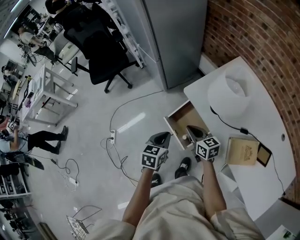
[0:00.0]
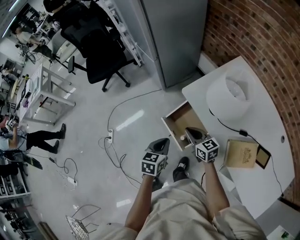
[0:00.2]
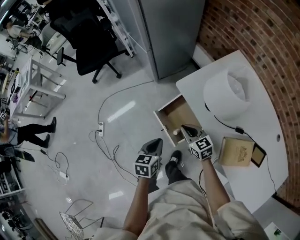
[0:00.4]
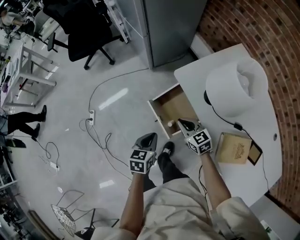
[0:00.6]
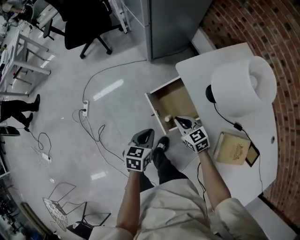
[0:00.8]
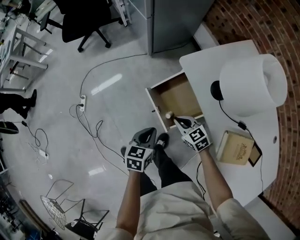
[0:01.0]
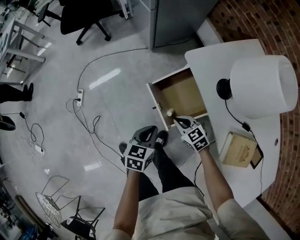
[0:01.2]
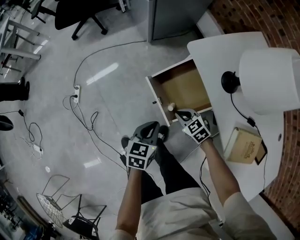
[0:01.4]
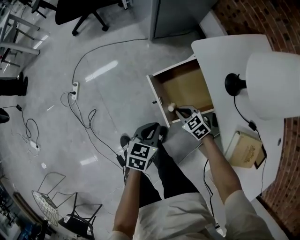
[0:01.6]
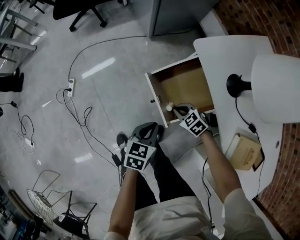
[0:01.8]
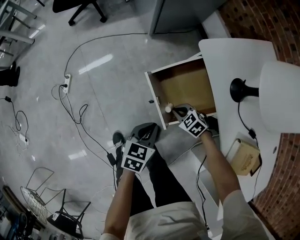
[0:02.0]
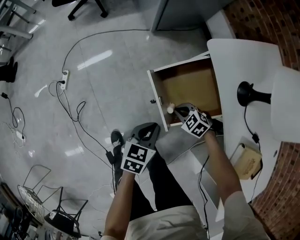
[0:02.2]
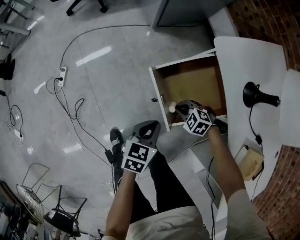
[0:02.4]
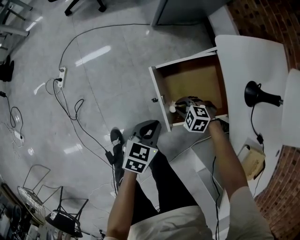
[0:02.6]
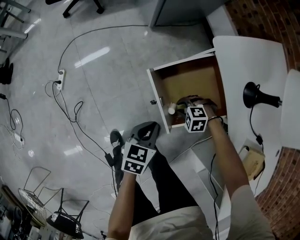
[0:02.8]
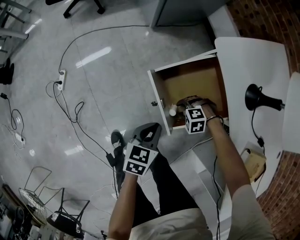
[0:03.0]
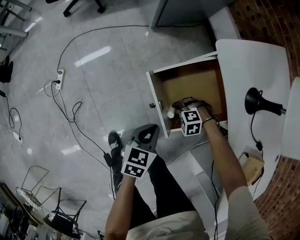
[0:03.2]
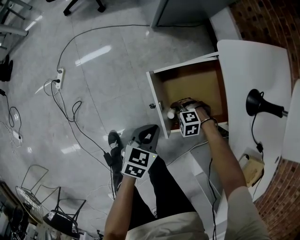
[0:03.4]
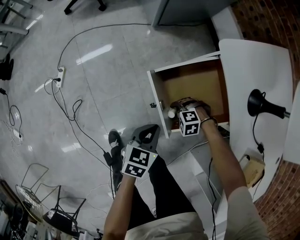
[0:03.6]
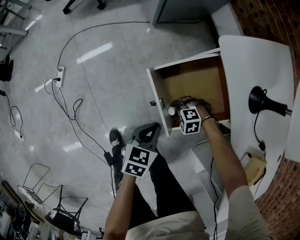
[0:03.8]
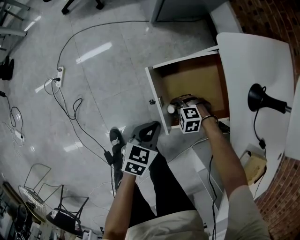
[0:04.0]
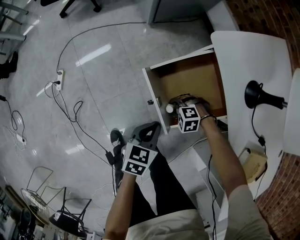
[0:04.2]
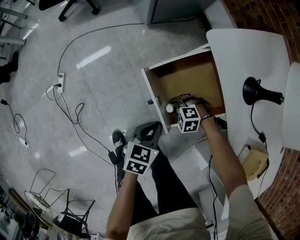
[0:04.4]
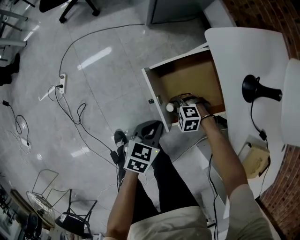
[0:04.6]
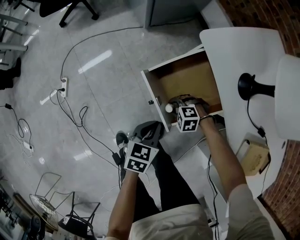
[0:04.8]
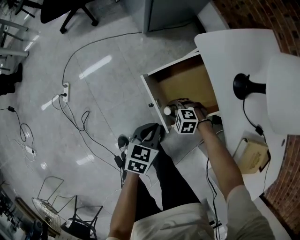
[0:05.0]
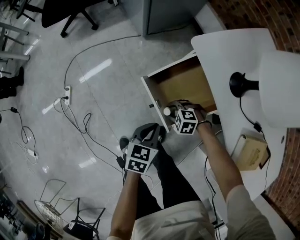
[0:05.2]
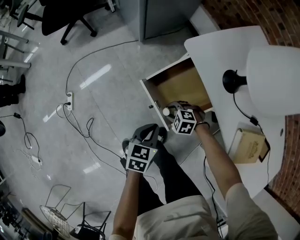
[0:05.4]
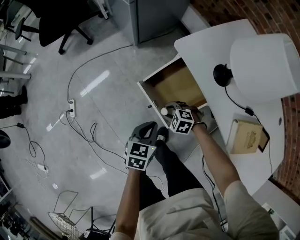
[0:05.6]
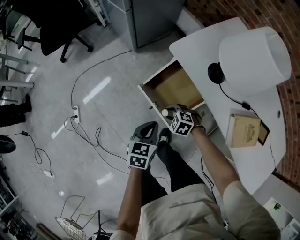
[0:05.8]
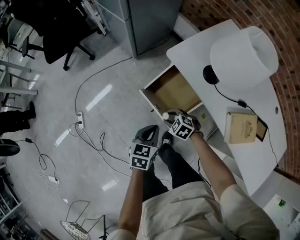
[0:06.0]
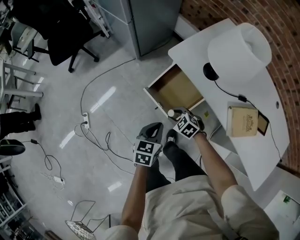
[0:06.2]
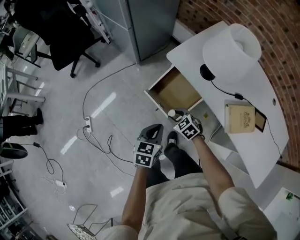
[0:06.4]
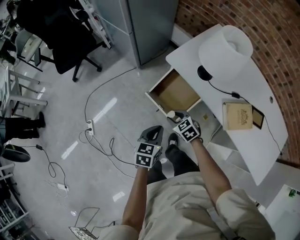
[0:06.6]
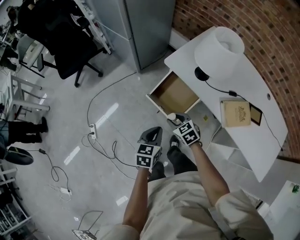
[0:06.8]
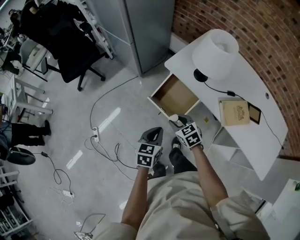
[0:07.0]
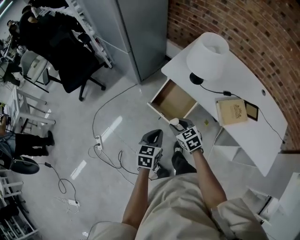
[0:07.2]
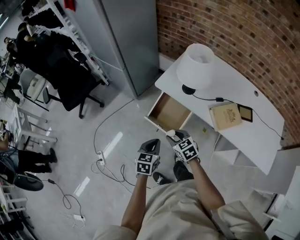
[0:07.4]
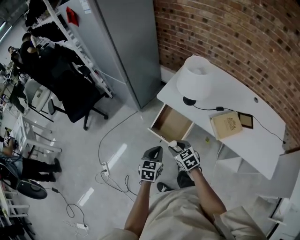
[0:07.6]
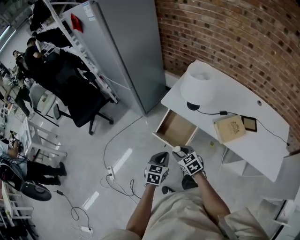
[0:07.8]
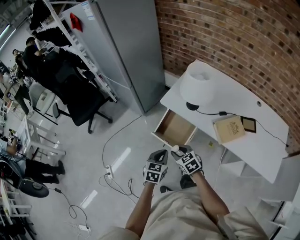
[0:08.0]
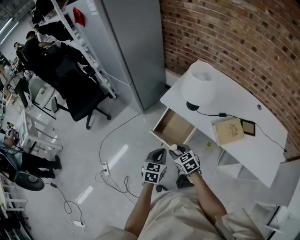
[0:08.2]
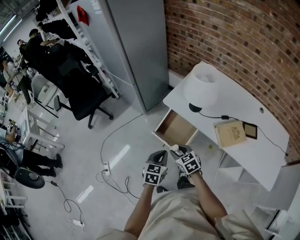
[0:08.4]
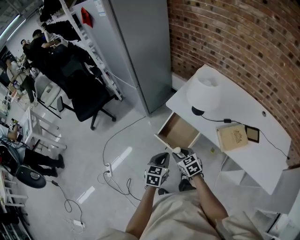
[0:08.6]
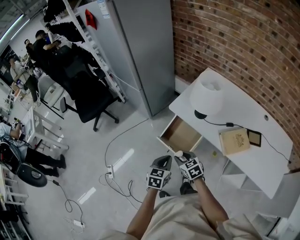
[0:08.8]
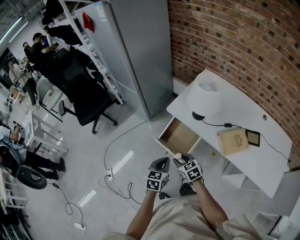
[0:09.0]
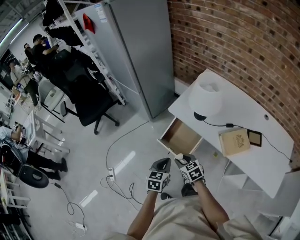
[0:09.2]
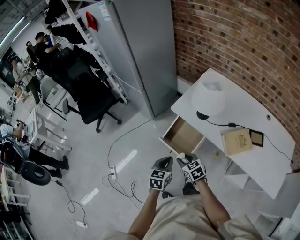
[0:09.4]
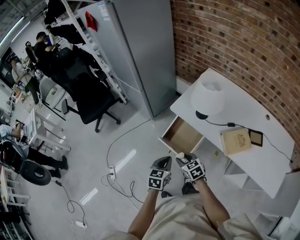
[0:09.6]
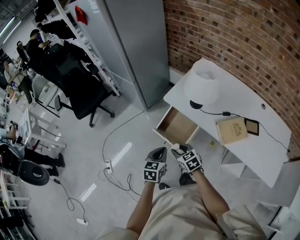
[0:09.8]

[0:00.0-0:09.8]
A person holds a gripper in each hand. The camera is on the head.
0:00.0 to 0:01.4: Both grippers travel together downward, roughly 25 cm. The right gripper points its fingers about 30 degrees further downward.
0:01.4 to 0:02.8: The grippers both shift downward by approximately 15 cm. The right gripper rotates around the line of its fingers by approximately 50 degrees, counterclockwise from behind, and opens.
0:02.8 to 0:04.2: There are only small adjustments of the grippers.
0:04.2 to 0:05.6: Both grippers travel together upward, roughly 10 cm. The right gripper turns by roughly 30 degrees.
0:05.6 to 0:07.0: The grippers both shift upward by approximately 20 cm. The right gripper changes its angle by some 60 degrees.
0:07.0 to 0:08.4: The left gripper shifts by approximately 5 cm, while the right gripper goes roughly 5 cm upward.
0:08.4 to 0:09.8: The grippers move only a little.

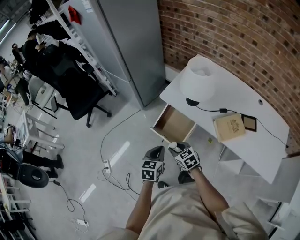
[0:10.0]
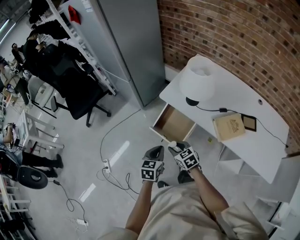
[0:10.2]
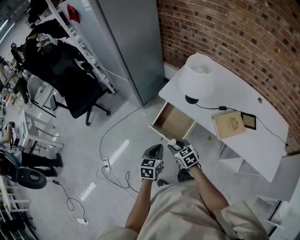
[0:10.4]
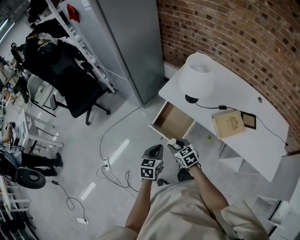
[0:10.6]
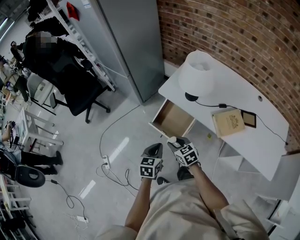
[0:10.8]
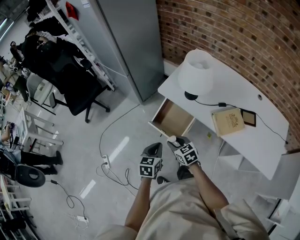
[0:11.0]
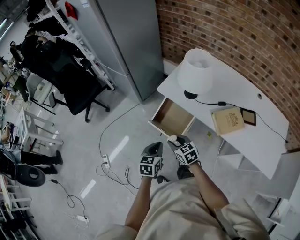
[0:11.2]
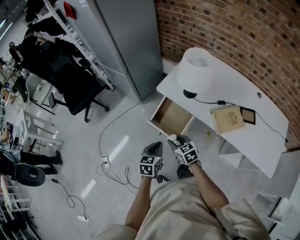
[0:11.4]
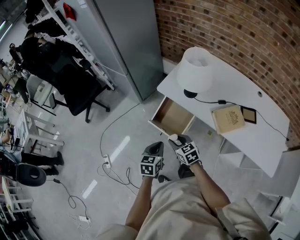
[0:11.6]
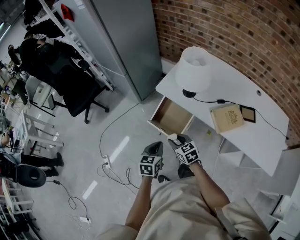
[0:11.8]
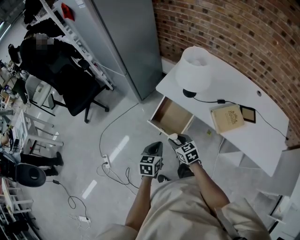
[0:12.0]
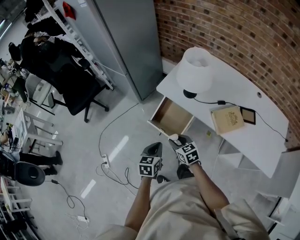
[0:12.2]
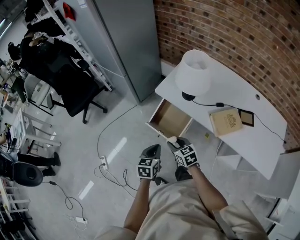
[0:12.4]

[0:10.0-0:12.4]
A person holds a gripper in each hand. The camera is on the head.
0:10.0 to 0:12.4: The grippers make only small movements.

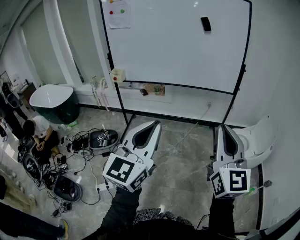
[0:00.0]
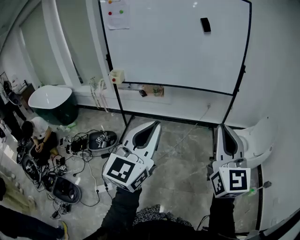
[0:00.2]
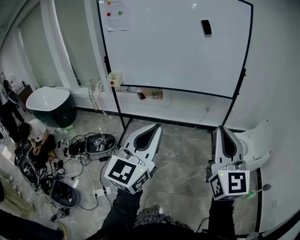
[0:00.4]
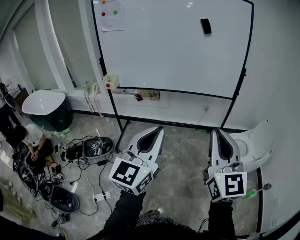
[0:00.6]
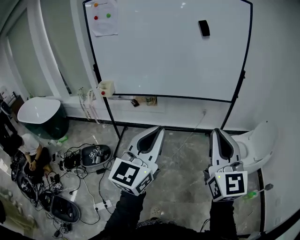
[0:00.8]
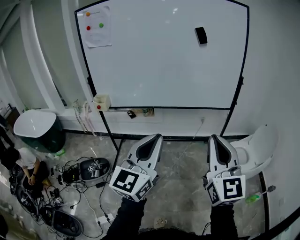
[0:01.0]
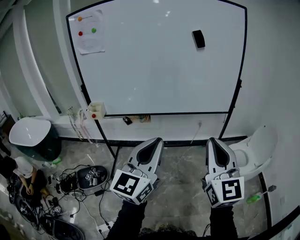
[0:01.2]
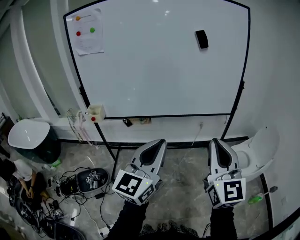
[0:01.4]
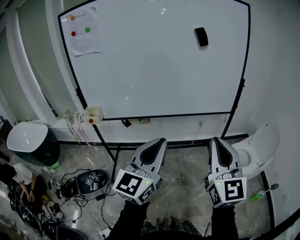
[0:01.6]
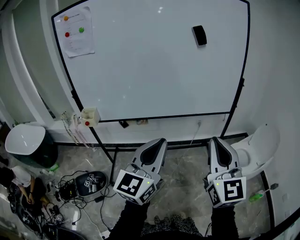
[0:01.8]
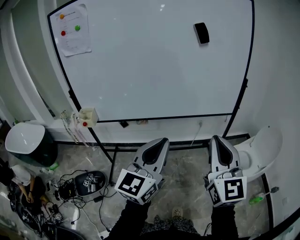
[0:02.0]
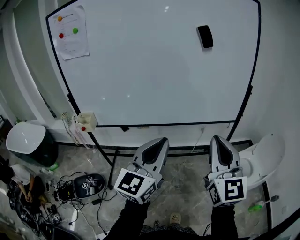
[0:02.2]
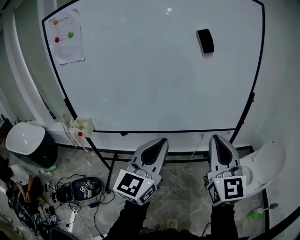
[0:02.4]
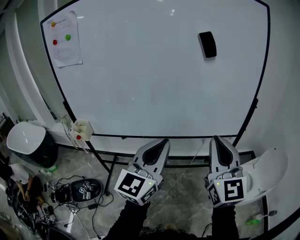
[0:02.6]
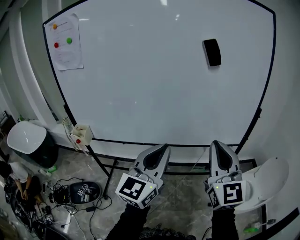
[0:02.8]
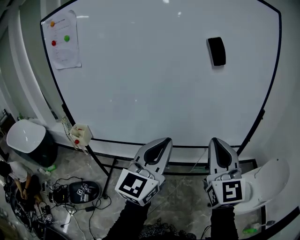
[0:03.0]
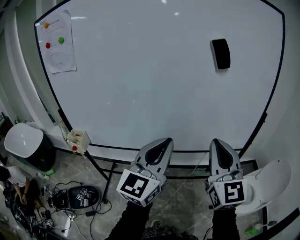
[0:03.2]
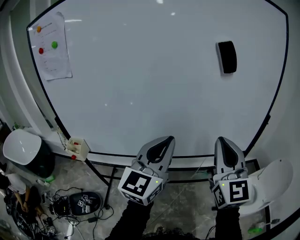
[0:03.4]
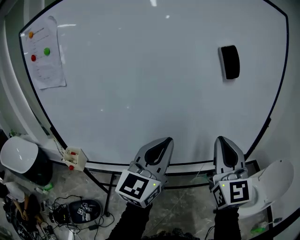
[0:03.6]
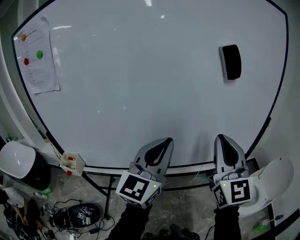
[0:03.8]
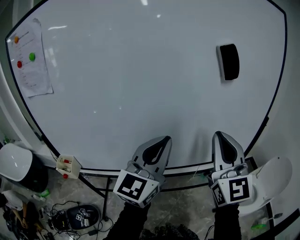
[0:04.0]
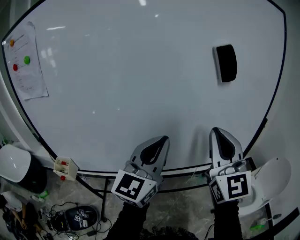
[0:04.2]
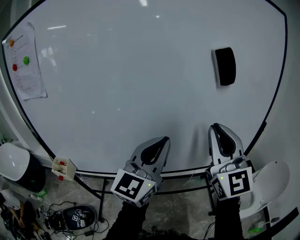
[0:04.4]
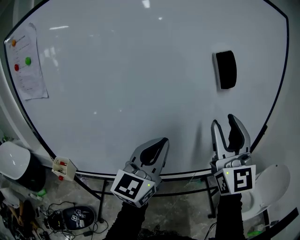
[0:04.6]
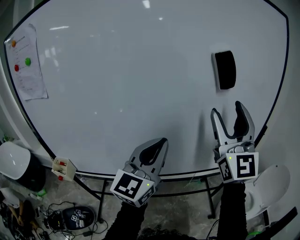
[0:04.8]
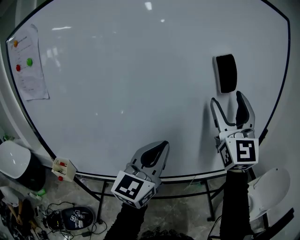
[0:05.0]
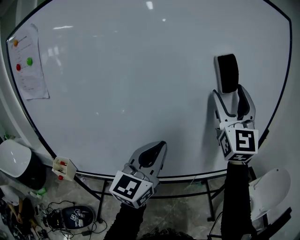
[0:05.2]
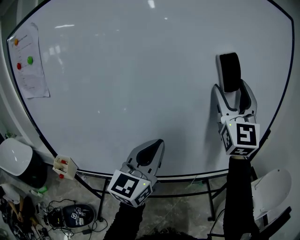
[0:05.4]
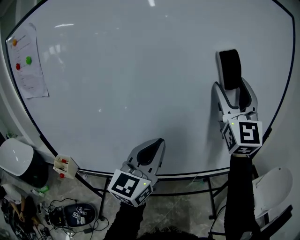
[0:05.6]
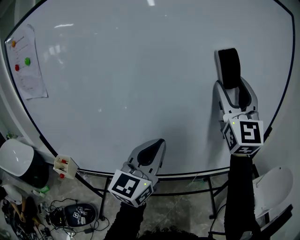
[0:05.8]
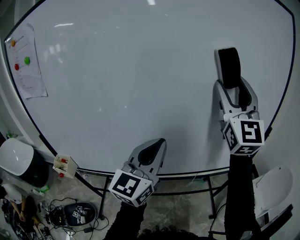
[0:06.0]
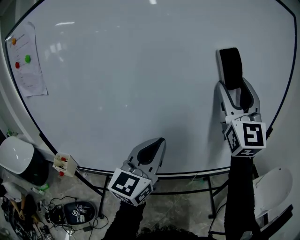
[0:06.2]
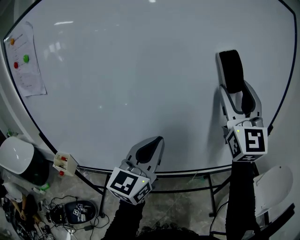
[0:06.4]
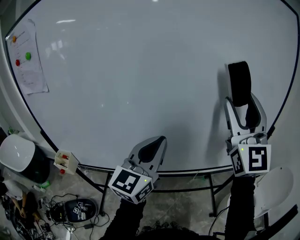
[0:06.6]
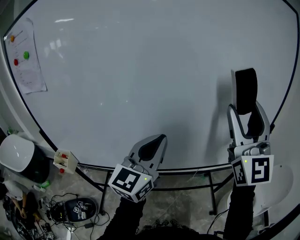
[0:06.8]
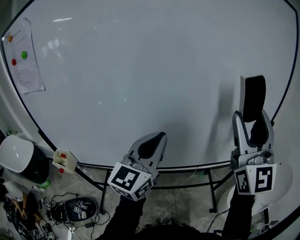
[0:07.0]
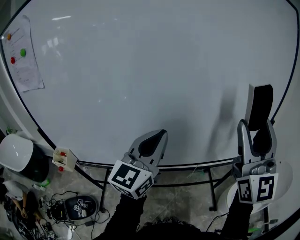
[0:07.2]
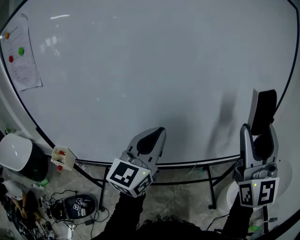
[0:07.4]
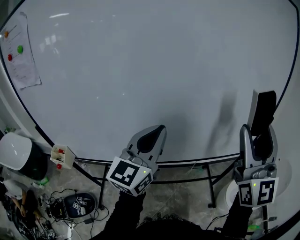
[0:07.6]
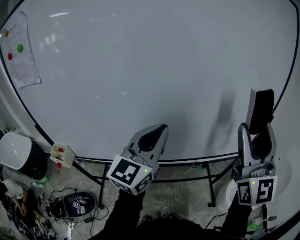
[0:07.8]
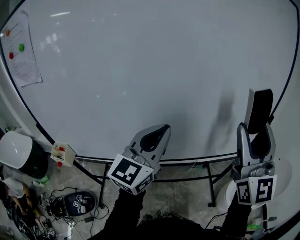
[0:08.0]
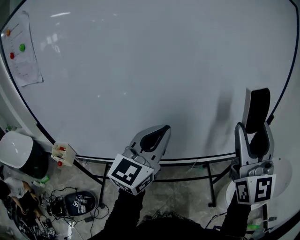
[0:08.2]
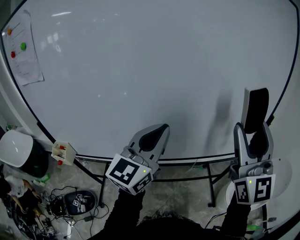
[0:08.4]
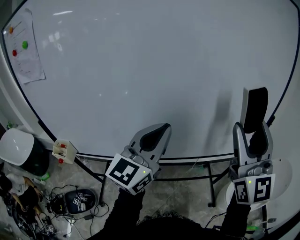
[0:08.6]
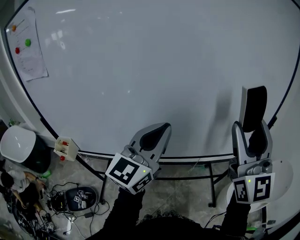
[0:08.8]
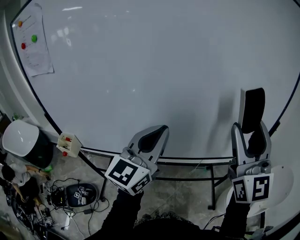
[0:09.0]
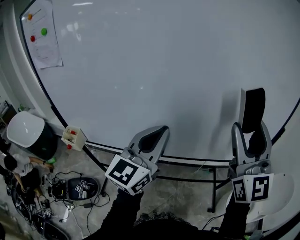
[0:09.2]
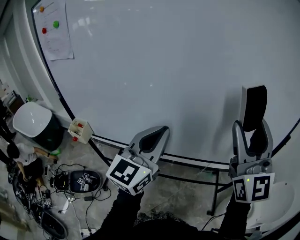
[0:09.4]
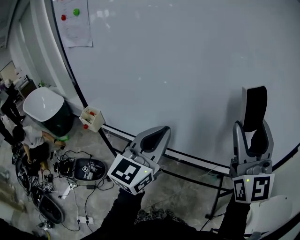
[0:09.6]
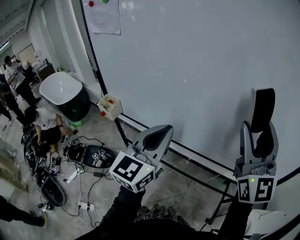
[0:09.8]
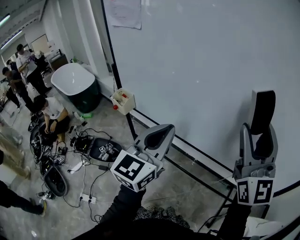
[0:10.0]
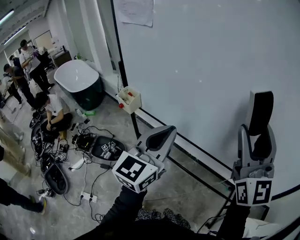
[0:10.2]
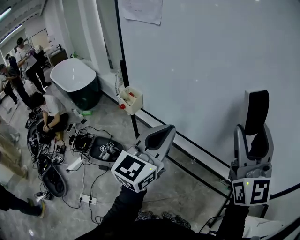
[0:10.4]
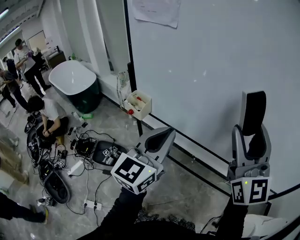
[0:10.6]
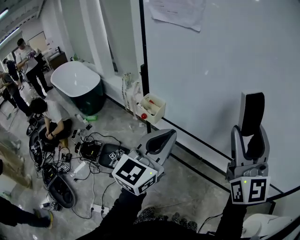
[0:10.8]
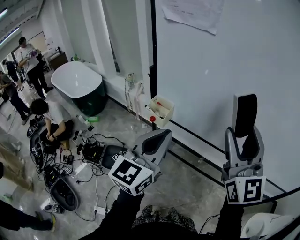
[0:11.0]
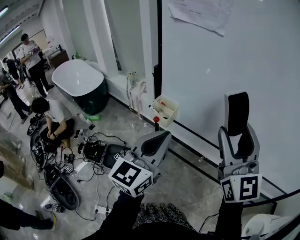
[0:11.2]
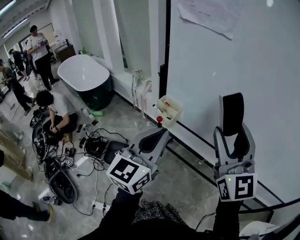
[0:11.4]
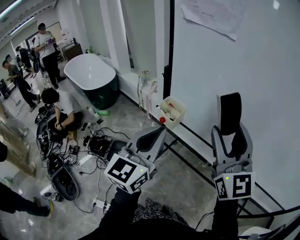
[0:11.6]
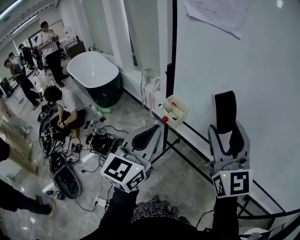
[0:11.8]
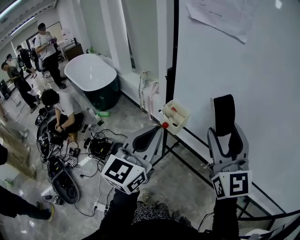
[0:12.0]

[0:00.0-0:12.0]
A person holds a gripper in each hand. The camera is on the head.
0:00.0 to 0:01.6: The left gripper travels forward by about 30 cm. The right gripper heads forward and to the left, covering about 25 cm.
0:01.6 to 0:03.0: Both grippers travel together forward, roughly 25 cm.
0:03.0 to 0:04.4: The left gripper goes approximately 15 cm forward. The right gripper is displaced forward and upward by approximately 15 cm.
0:04.4 to 0:06.0: The right gripper goes about 15 cm forward and upward, and opens.
0:06.0 to 0:07.6: The right gripper is displaced backward, downward and to the right by some 15 cm.
0:07.6 to 0:09.0: The grippers stay close to where they were, moving slightly.
0:09.0 to 0:10.4: The left gripper ends up some 25 cm from where it was, and rotates approximately 30 degrees. Meanwhile the right gripper shifts by roughly 20 cm, and rotates some 30 degrees.
0:10.4 to 0:12.0: The two grippers go approximately 30 cm to the left.
